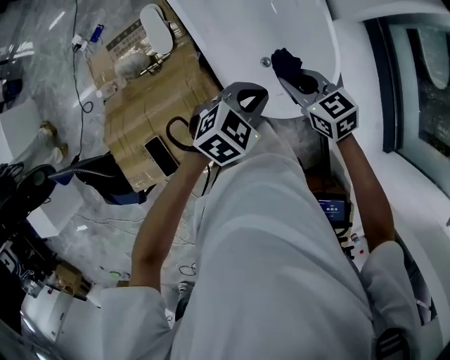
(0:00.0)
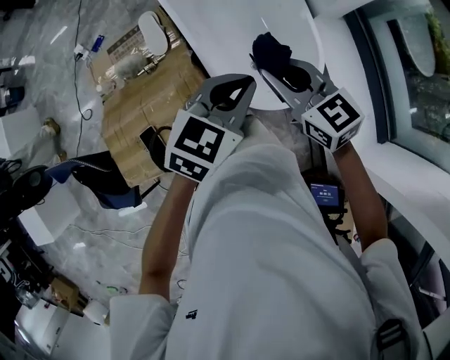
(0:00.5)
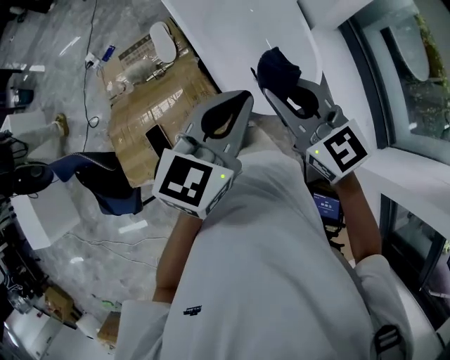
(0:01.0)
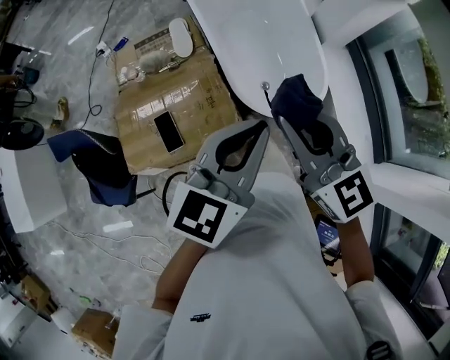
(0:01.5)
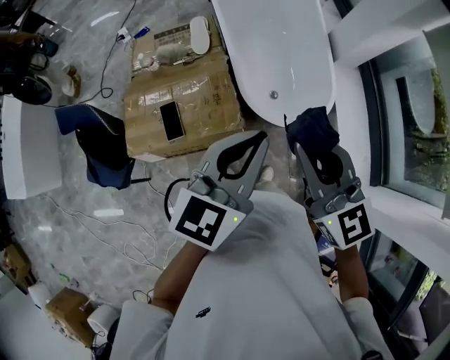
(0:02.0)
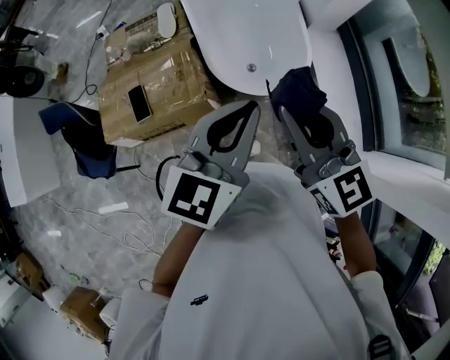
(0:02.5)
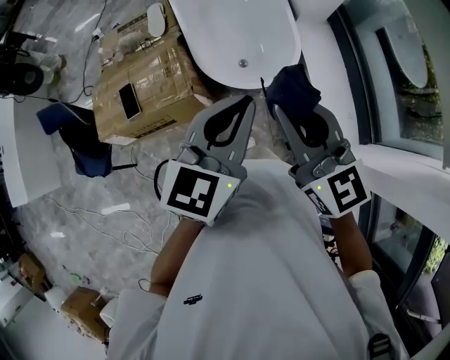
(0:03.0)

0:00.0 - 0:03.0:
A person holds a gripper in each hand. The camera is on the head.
0:00.0 - 0:01.5: Both grippers travel together upward and backward, approximately 35 cm. The left gripper angles its fingers upward, by roughly 30 degrees; the right gripper turns by approximately 30 degrees.
0:01.5 - 0:03.0: Both grippers travel together to the right and backward, approximately 20 cm.

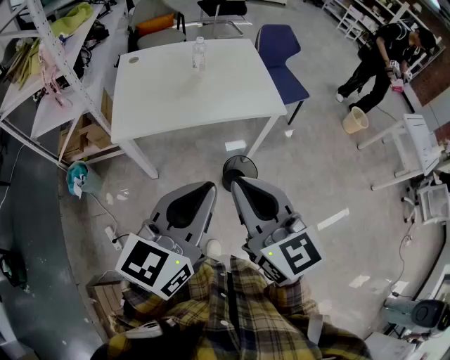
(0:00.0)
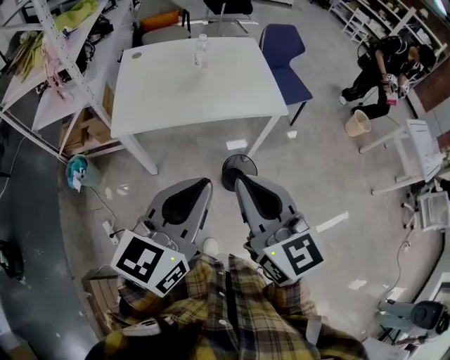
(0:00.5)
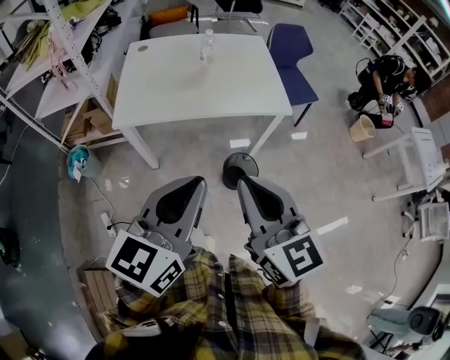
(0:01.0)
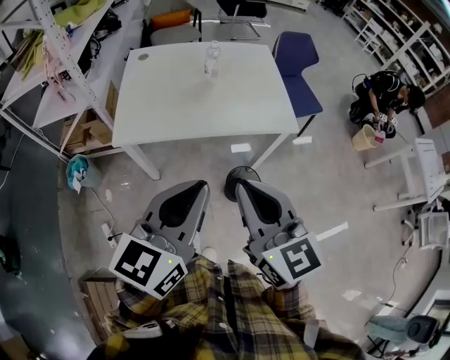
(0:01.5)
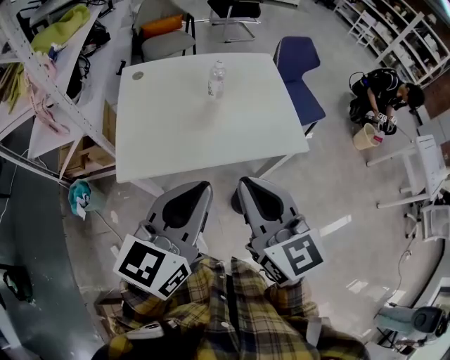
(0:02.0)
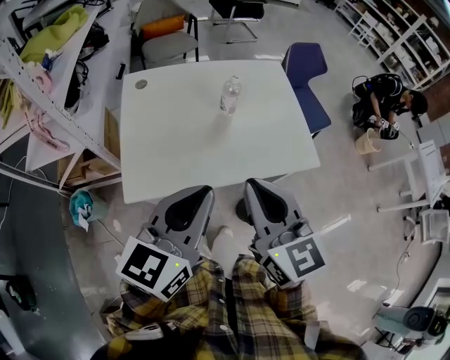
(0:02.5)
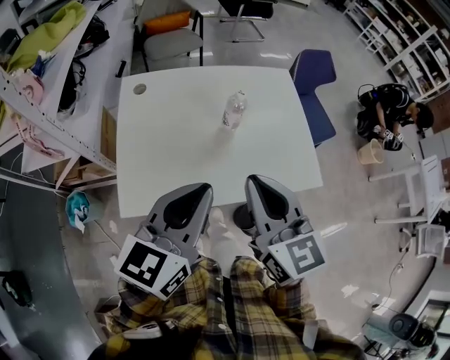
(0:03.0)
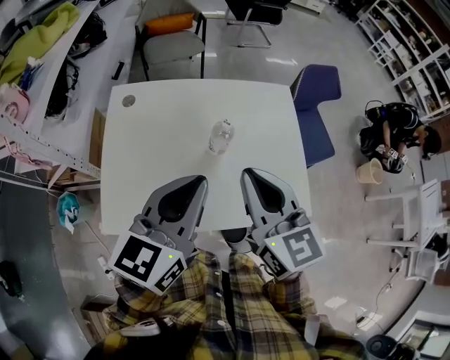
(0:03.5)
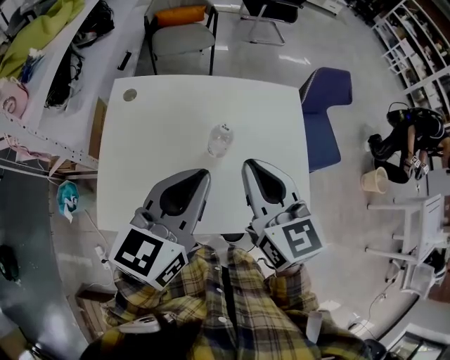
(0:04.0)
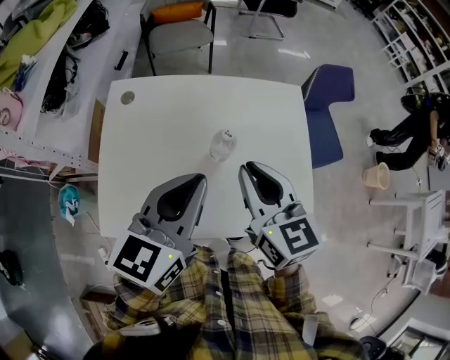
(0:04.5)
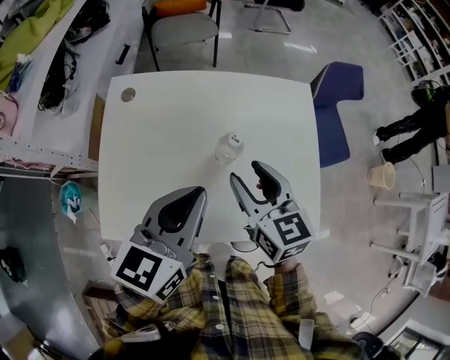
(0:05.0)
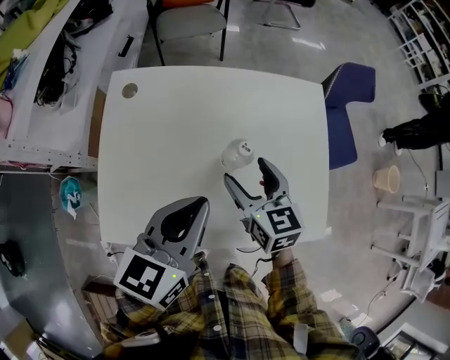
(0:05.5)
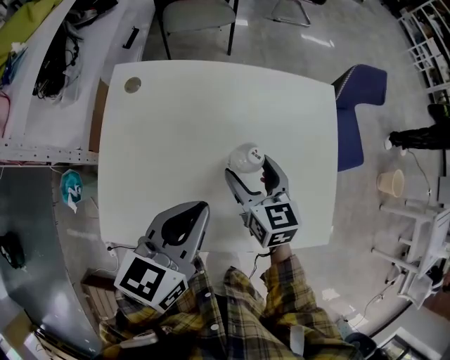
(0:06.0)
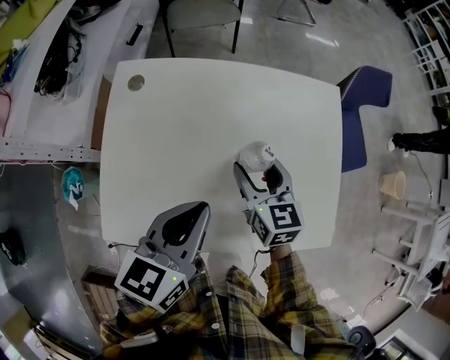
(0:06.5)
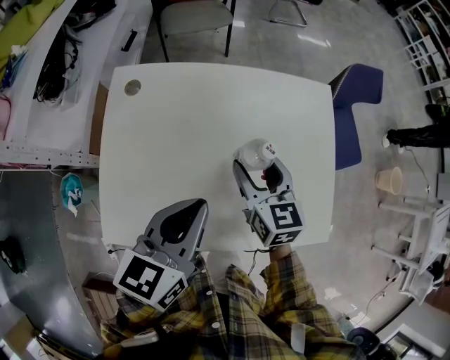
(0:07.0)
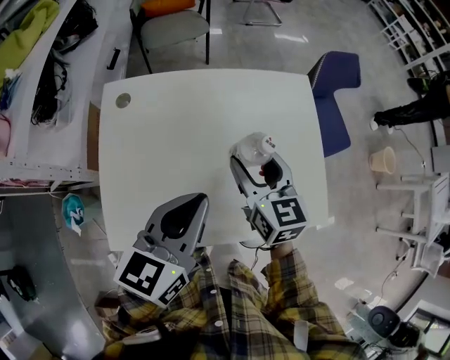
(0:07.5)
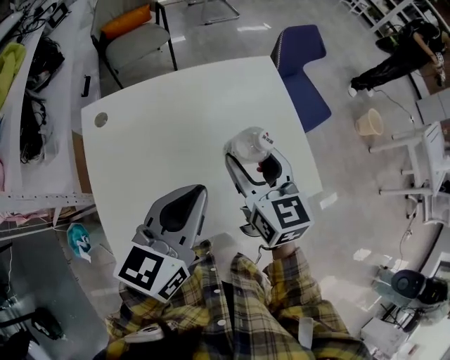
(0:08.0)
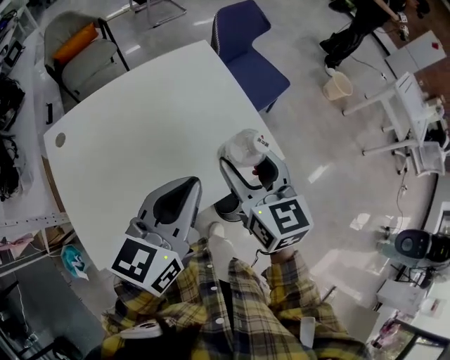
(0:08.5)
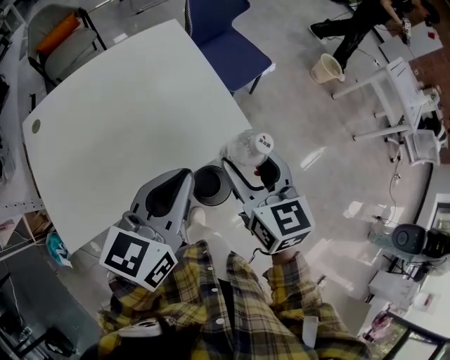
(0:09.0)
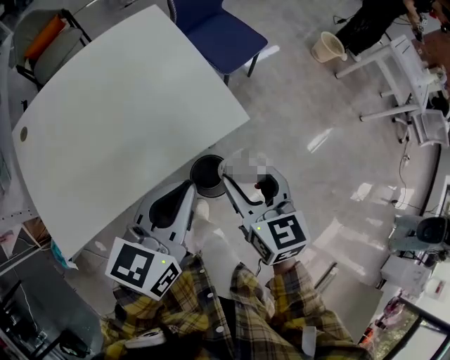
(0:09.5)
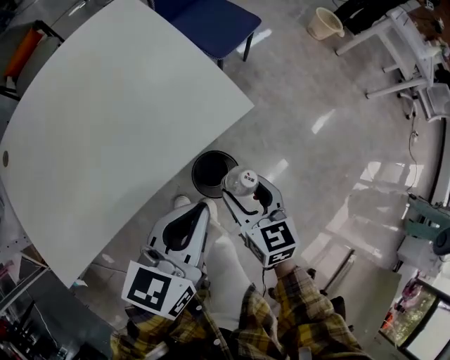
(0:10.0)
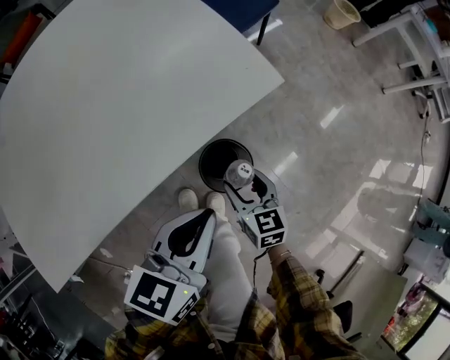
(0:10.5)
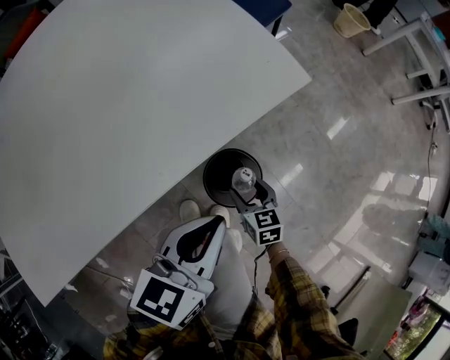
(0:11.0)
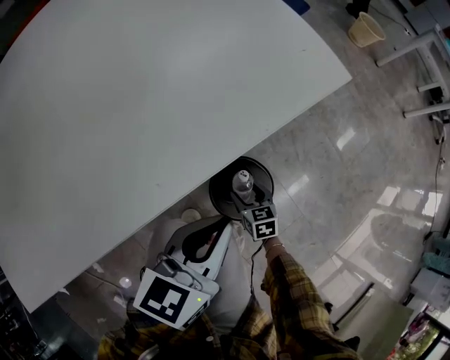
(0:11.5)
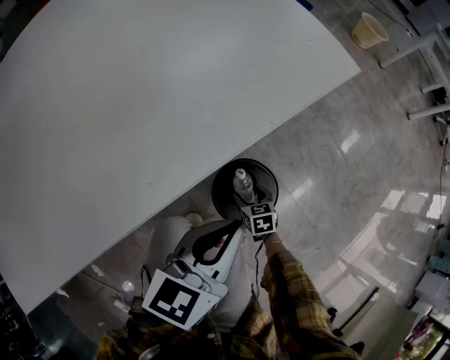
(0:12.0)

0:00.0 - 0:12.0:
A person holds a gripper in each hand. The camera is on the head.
0:00.0 - 0:02.0: The right gripper shifts roughly 20 cm forward. Meanwhile the left gripper is displaced forward and to the left by roughly 20 cm.
0:02.0 - 0:04.0: The grippers both shift forward by about 30 cm.
0:04.0 - 0:06.0: The right gripper shifts roughly 25 cm downward and forward, and opens, while the left gripper travels downward by some 10 cm.
0:06.0 - 0:08.0: The right gripper heads upward, backward and to the right, covering roughly 15 cm, and turns by about 20 degrees, while the left gripper is displaced upward by some 5 cm.
0:08.0 - 0:10.0: The right gripper is displaced to the right, downward and backward by approximately 50 cm, and swivels approximately 20 degrees; the left gripper travels to the right and downward by about 35 cm, and turns by approximately 20 degrees.
0:10.0 - 0:12.0: The right gripper shifts roughly 50 cm downward, and turns by approximately 20 degrees. The left gripper is displaced downward by roughly 25 cm.

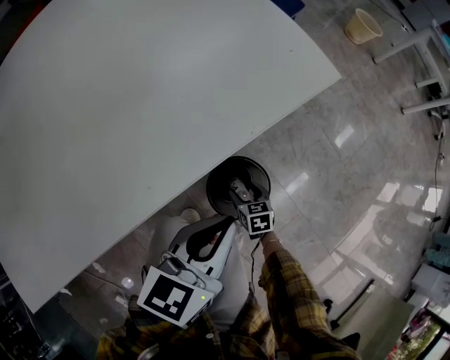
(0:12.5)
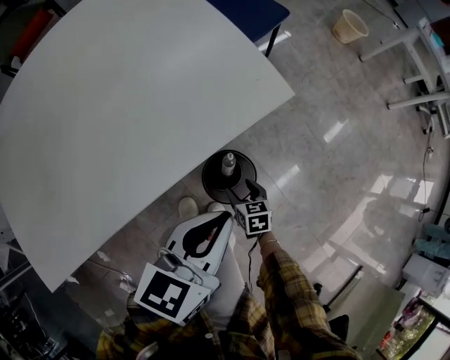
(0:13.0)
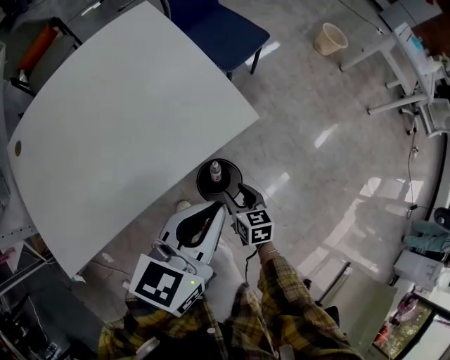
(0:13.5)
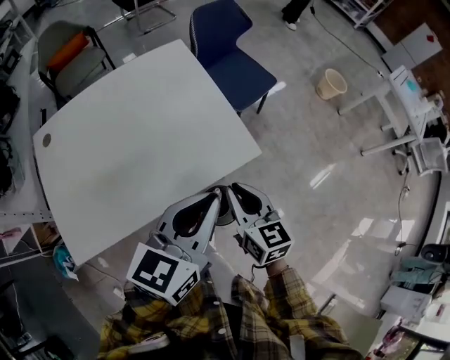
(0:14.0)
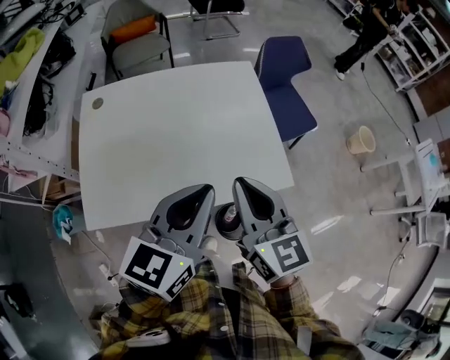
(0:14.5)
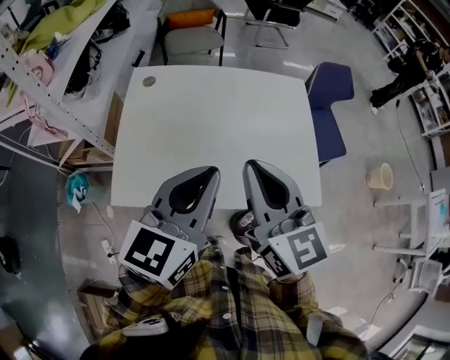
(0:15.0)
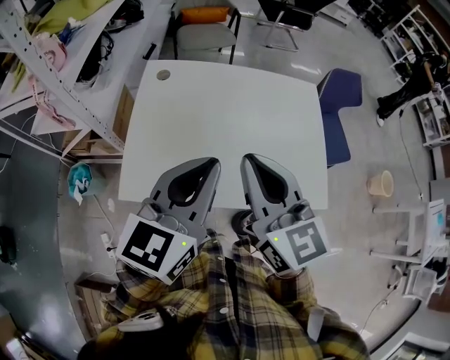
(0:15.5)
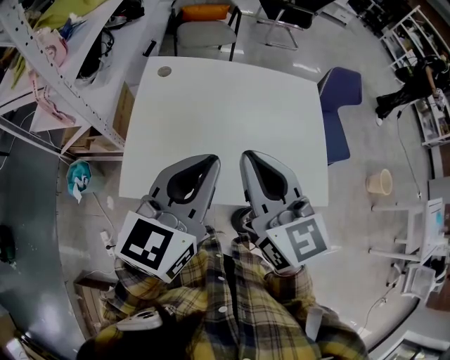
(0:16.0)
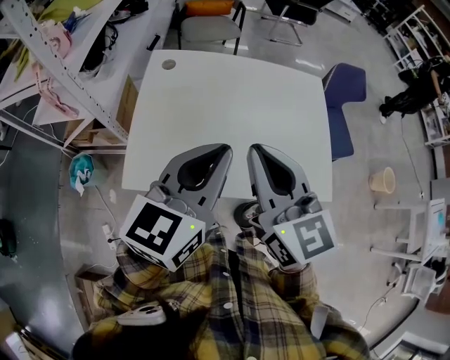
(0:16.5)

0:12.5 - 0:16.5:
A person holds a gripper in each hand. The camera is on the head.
0:12.5 - 0:14.5: The right gripper moves upward, about 80 cm, points its fingers some 40 degrees further upward, and closes up, while the left gripper moves upward, some 40 cm, and turns by about 30 degrees.
0:14.5 - 0:16.5: Both grippers move to the left, approximately 20 cm.

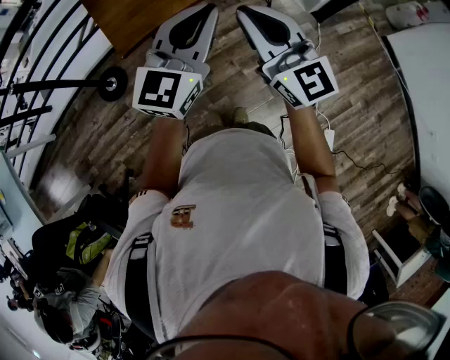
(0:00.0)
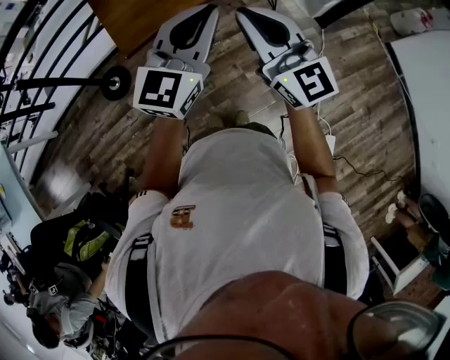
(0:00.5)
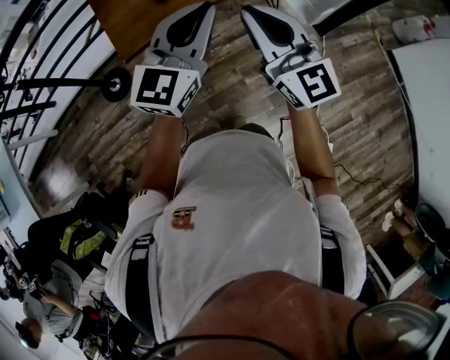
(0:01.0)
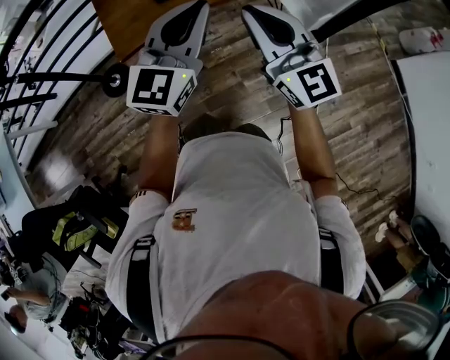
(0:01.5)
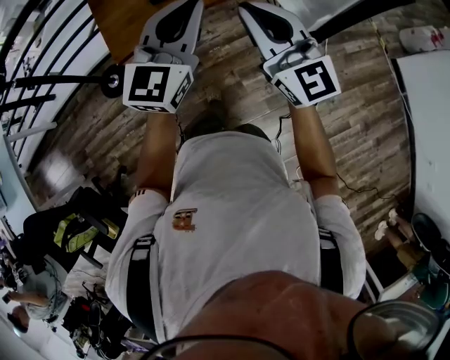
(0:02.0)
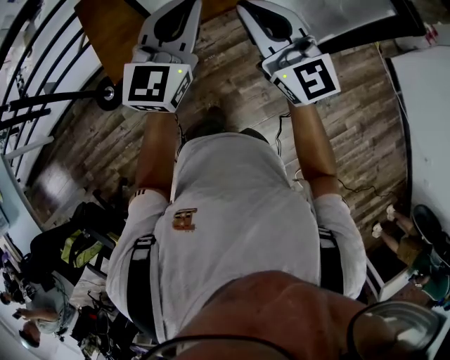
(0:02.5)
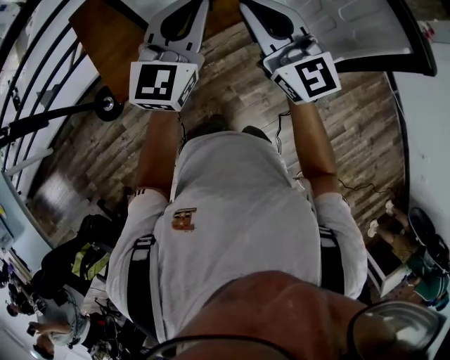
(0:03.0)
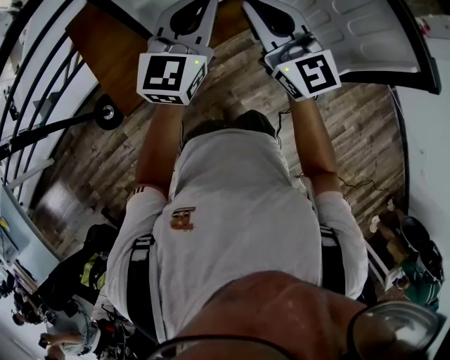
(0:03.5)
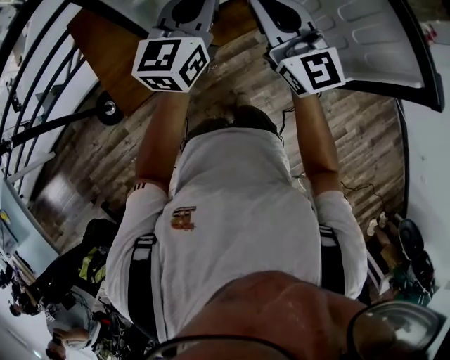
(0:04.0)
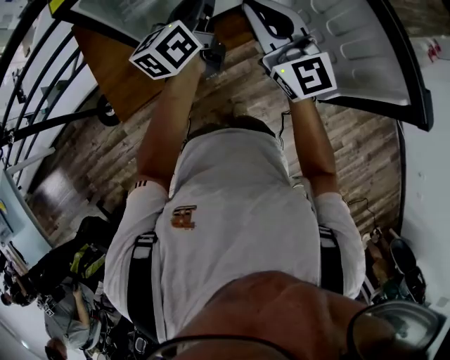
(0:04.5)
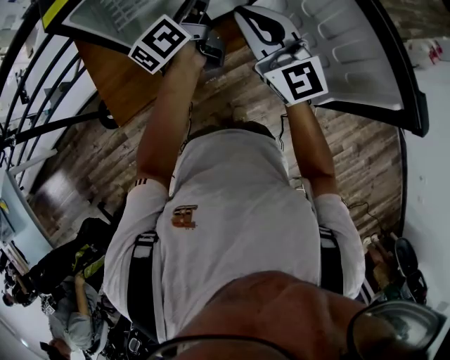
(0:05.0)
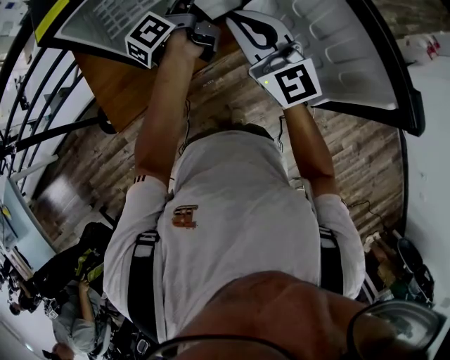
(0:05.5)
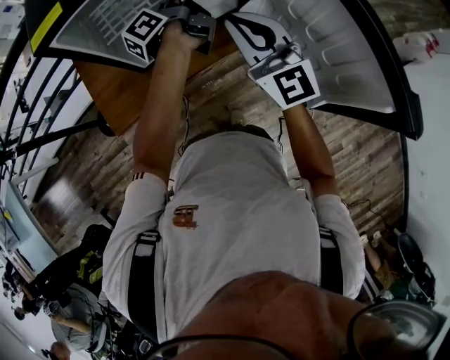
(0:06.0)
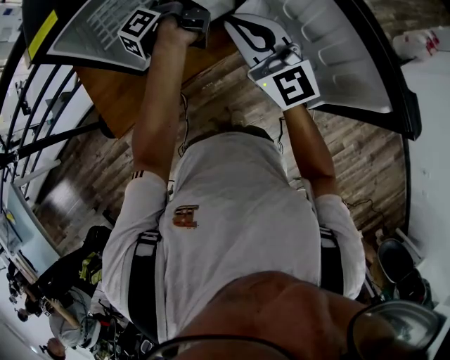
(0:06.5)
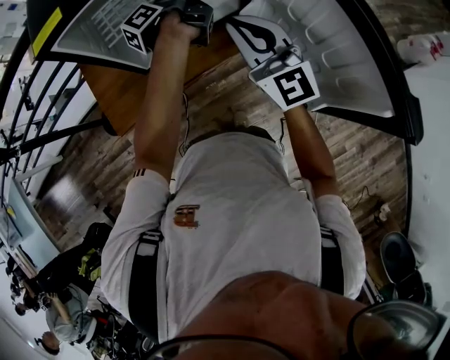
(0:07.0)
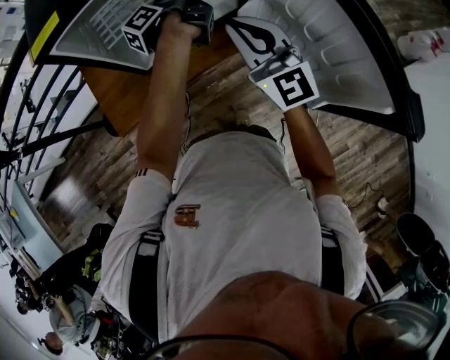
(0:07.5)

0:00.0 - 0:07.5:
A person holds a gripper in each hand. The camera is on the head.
0:00.0 - 0:02.0: The left gripper goes roughly 10 cm forward and to the right. The right gripper goes some 10 cm to the right and forward.
0:02.0 - 0:04.0: The two grippers go some 30 cm forward.
0:04.0 - 0:05.5: The right gripper heads to the right, covering approximately 5 cm. Meanwhile the left gripper travels forward, to the right and downward by about 15 cm, rolls counterclockwise, seen from behind, by approximately 60 degrees, and opens up.
0:05.5 - 0:07.5: The left gripper changes place by some 5 cm, swivels approximately 20 degrees, and closes up.
